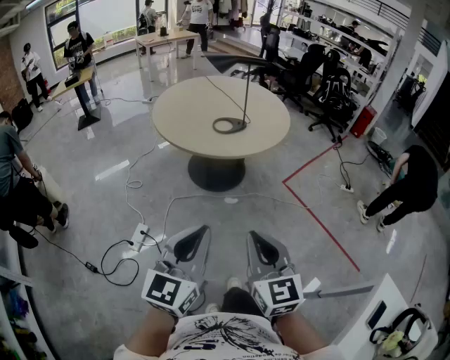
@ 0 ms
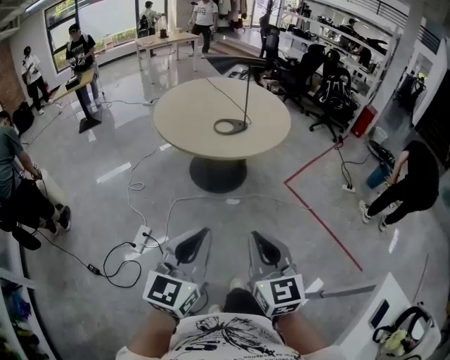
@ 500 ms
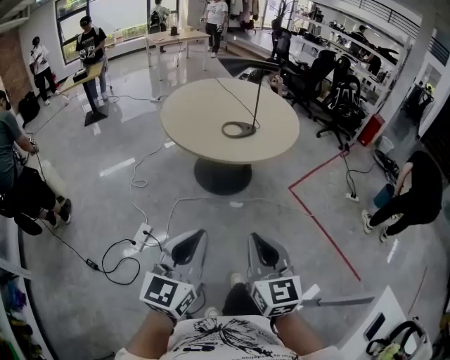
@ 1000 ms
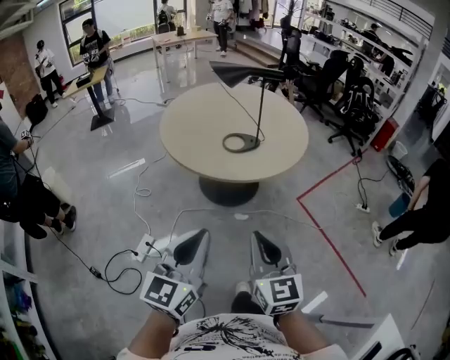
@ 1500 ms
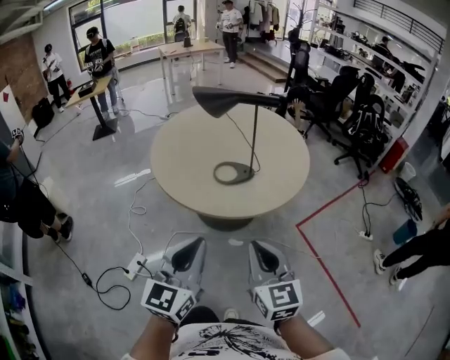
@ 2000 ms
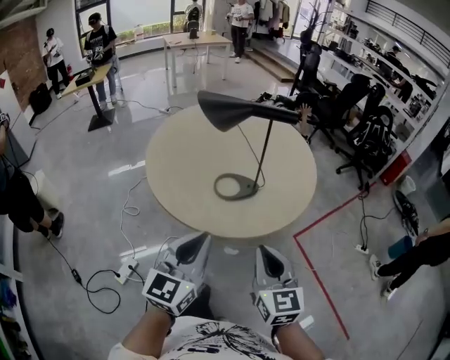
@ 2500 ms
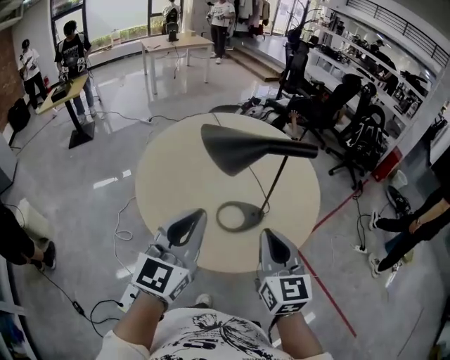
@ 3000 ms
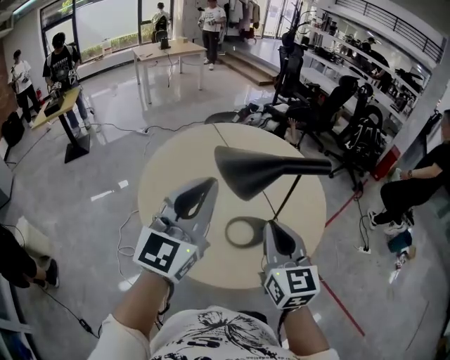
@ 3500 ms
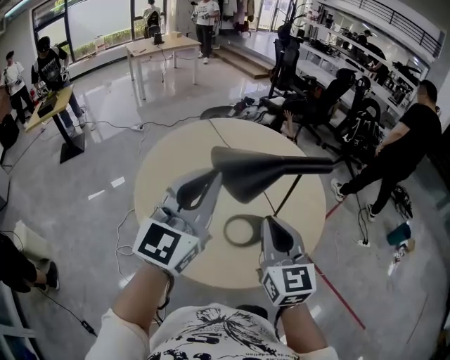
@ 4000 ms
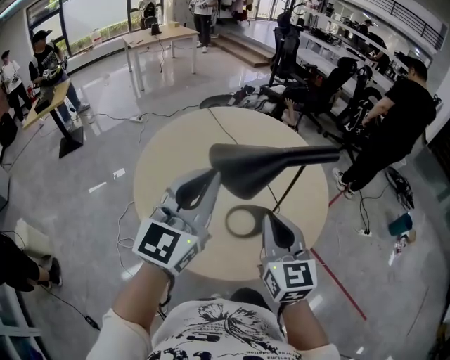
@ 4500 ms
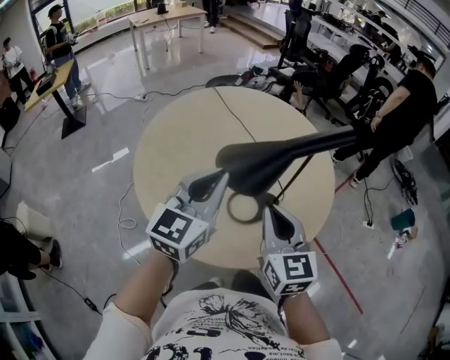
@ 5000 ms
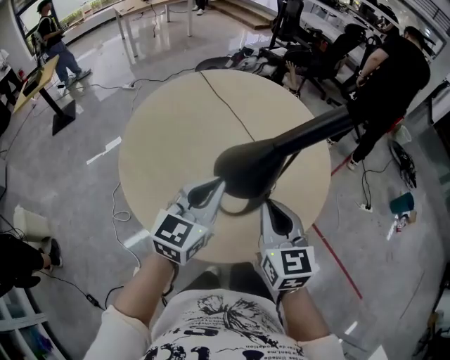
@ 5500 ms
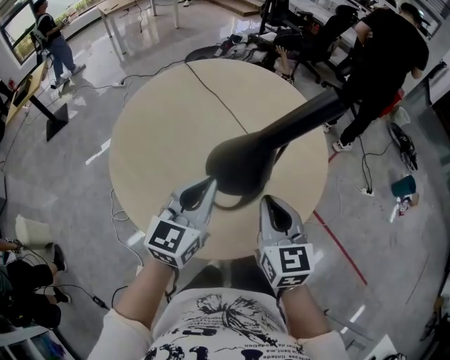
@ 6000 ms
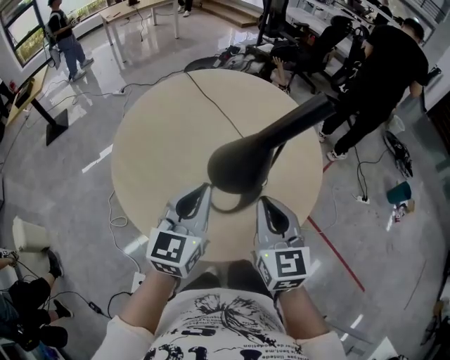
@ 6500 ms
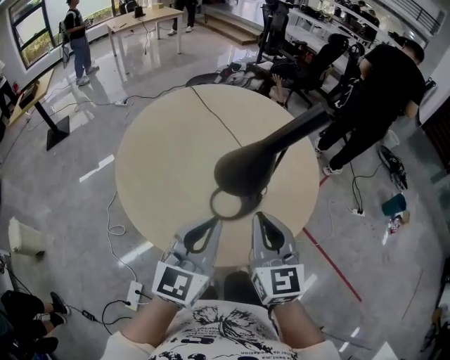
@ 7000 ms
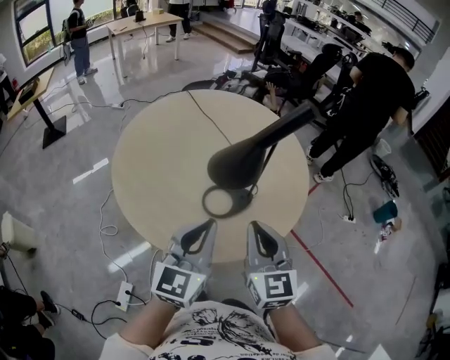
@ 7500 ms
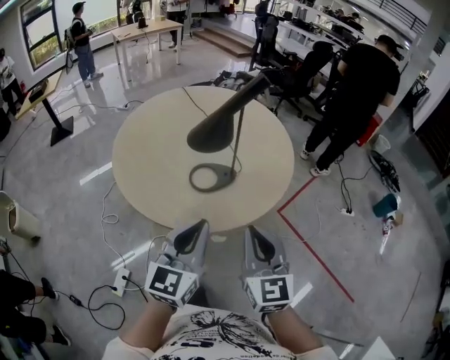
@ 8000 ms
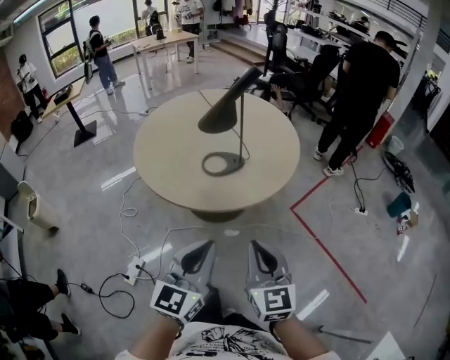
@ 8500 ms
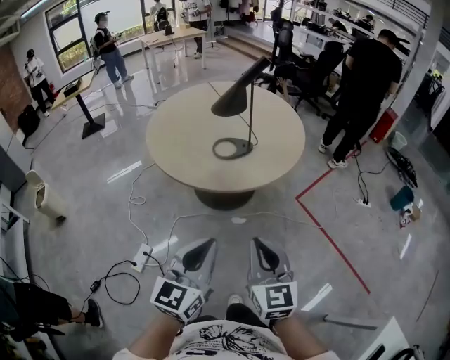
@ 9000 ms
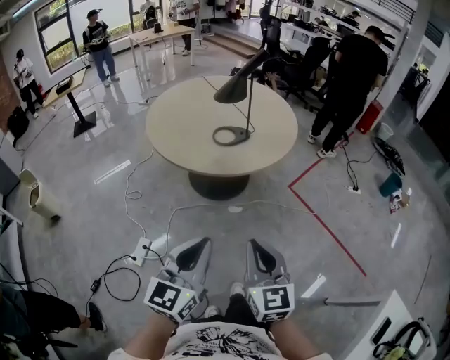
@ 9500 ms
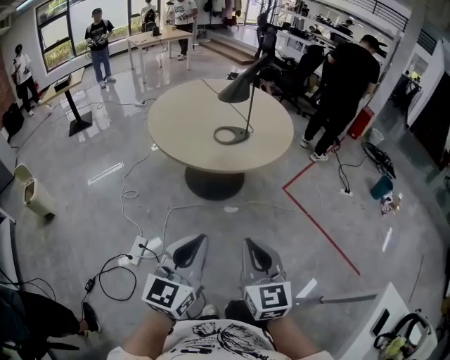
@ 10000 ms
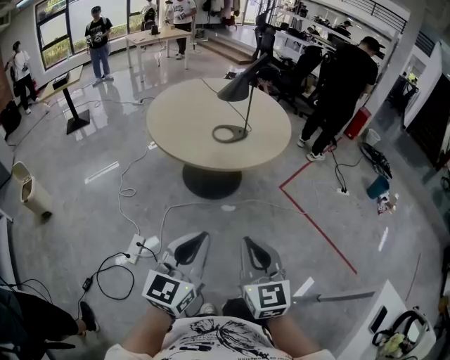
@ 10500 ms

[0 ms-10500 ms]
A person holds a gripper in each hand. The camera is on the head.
0 ms to 2000 ms: Both grippers move forward, roughly 25 cm.
2000 ms to 4000 ms: Both grippers travel together forward, some 35 cm. The left gripper changes its angle by some 20 degrees.
4000 ms to 6500 ms: The left gripper moves downward, some 15 cm, and changes its angle by approximately 20 degrees. Meanwhile the right gripper travels downward by roughly 5 cm.
6500 ms to 8500 ms: Both grippers travel together backward, approximately 30 cm.
8500 ms to 10500 ms: The grippers both shift backward and to the left by about 20 cm.

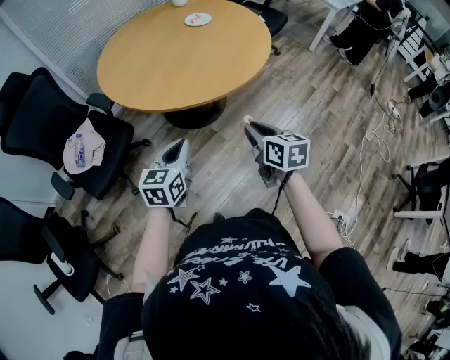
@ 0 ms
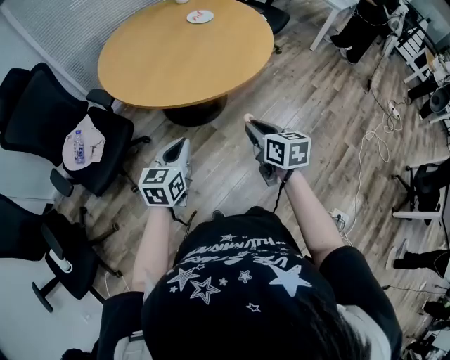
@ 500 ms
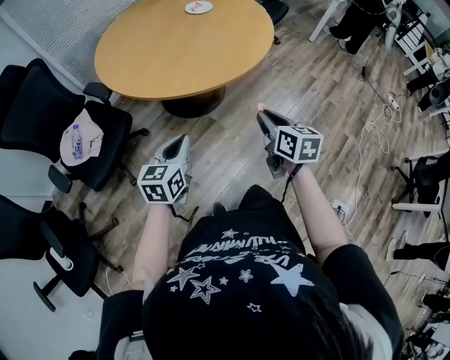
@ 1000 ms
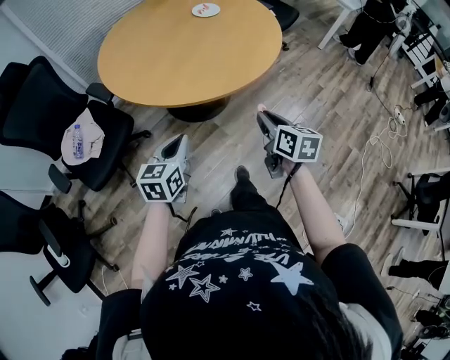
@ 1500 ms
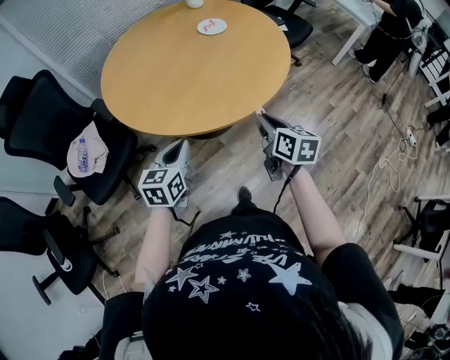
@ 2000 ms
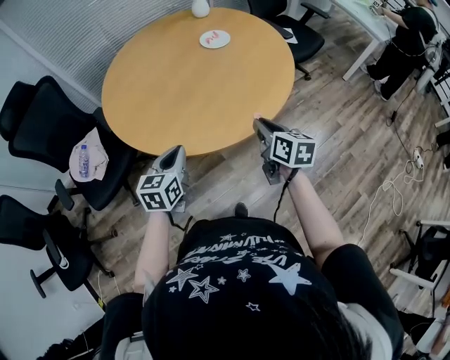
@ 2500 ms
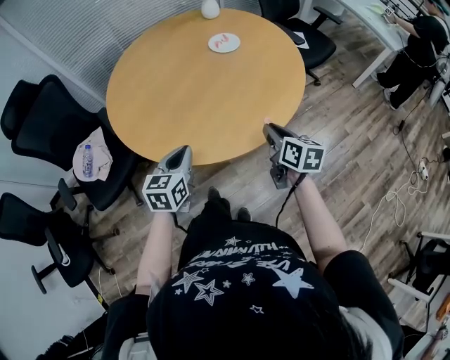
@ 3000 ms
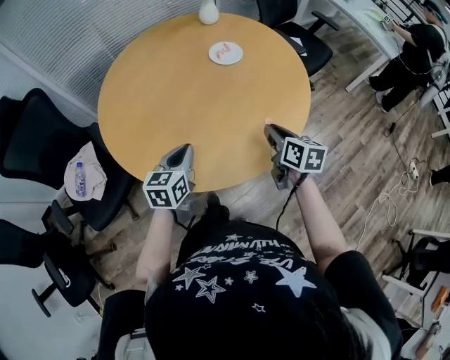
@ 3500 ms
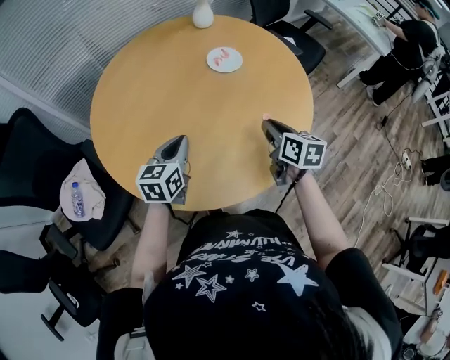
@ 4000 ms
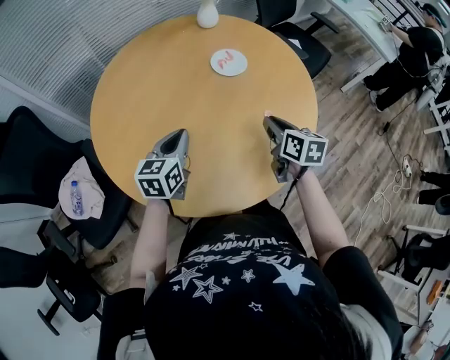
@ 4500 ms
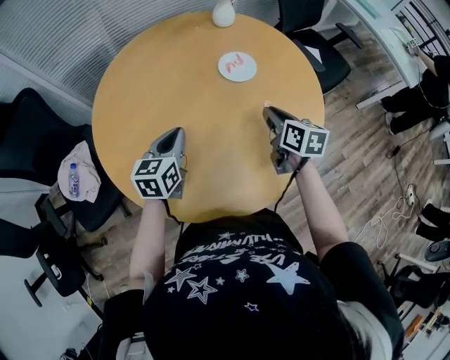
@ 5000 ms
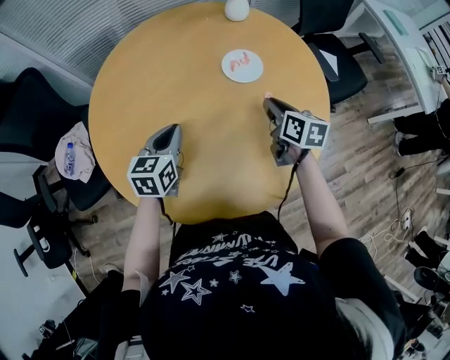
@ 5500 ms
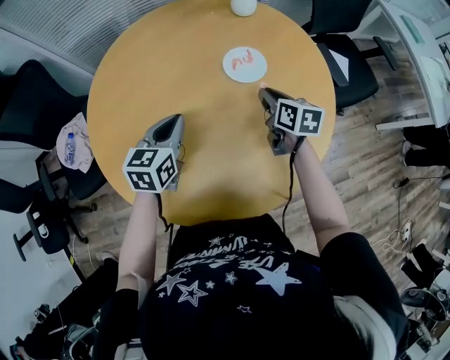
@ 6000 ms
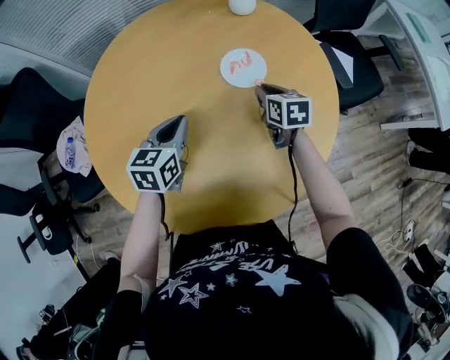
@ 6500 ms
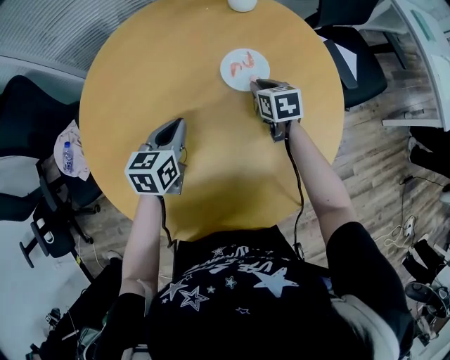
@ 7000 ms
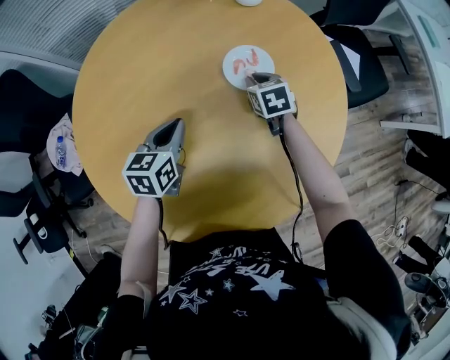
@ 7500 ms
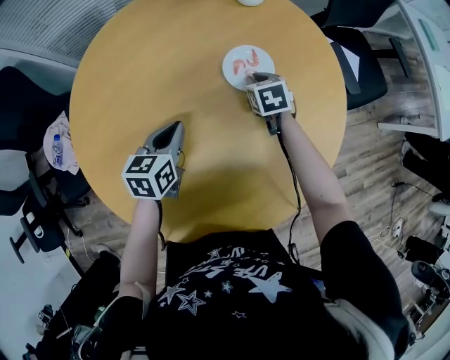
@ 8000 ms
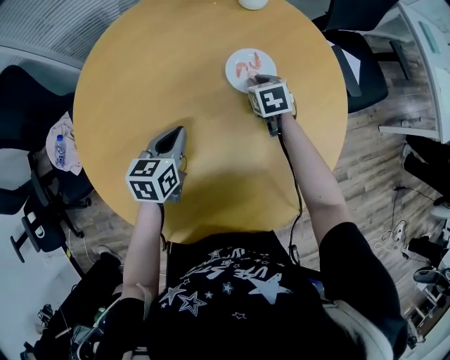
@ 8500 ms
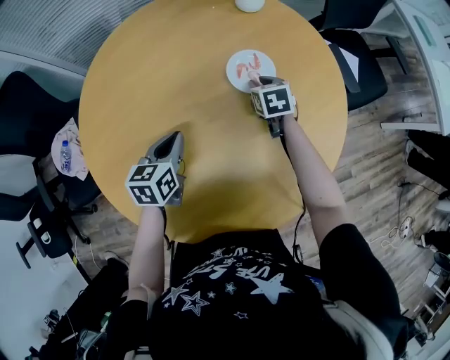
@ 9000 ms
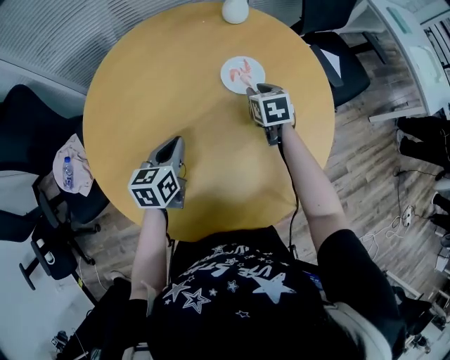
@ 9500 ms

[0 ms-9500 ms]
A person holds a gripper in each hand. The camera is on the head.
0 ms to 2000 ms: Both grippers travel together forward, some 15 cm.
2000 ms to 4000 ms: The grippers both shift forward by roughly 30 cm.
4000 ms to 5500 ms: The right gripper heads forward, covering about 20 cm. The left gripper heads forward, covering some 10 cm.
5500 ms to 7500 ms: The right gripper shifts roughly 20 cm forward and downward, and rotates about 40 degrees. Meanwhile the left gripper goes approximately 10 cm forward and downward.
7500 ms to 9500 ms: The left gripper shifts by roughly 5 cm. Meanwhile the right gripper shifts about 5 cm upward.

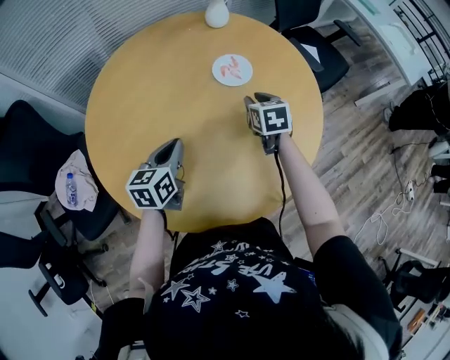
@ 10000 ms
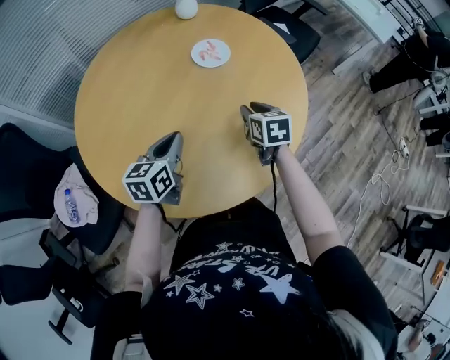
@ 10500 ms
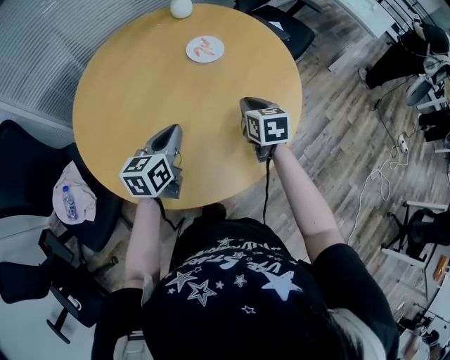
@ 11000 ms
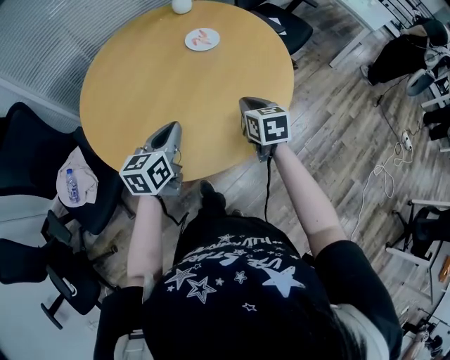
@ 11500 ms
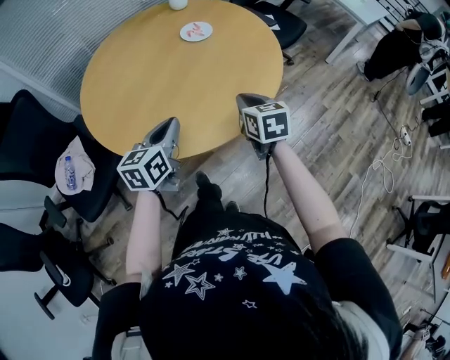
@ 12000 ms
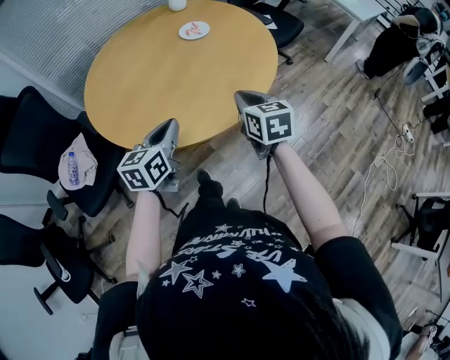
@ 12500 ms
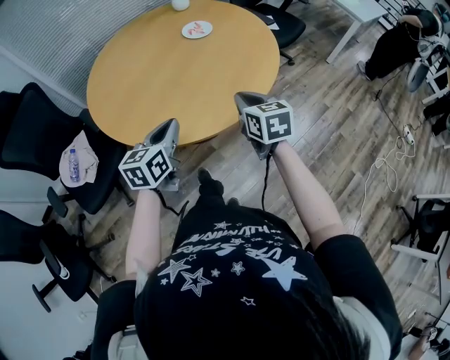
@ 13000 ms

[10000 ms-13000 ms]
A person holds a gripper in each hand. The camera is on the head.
10000 ms to 11500 ms: The right gripper heads backward, covering some 25 cm, and closes its fingers. Meanwhile the left gripper shifts about 15 cm backward and to the right.
11500 ms to 13000 ms: Both grippers travel together backward, some 15 cm.

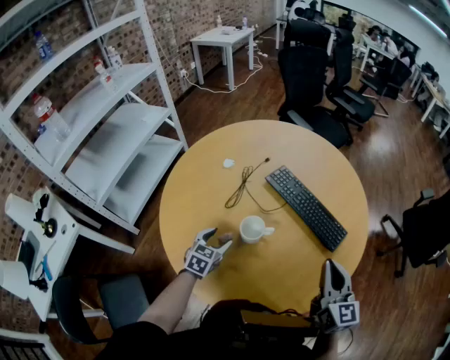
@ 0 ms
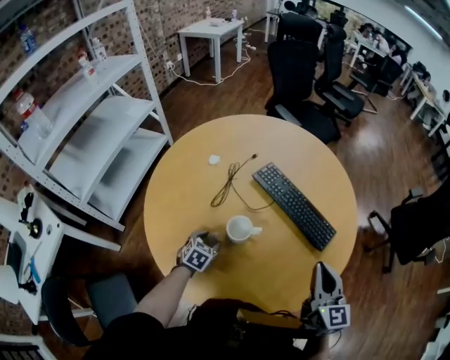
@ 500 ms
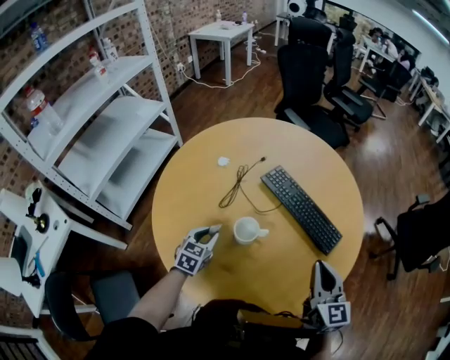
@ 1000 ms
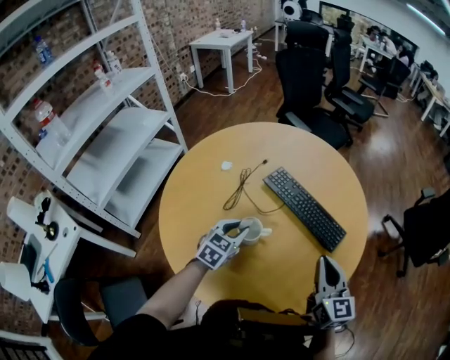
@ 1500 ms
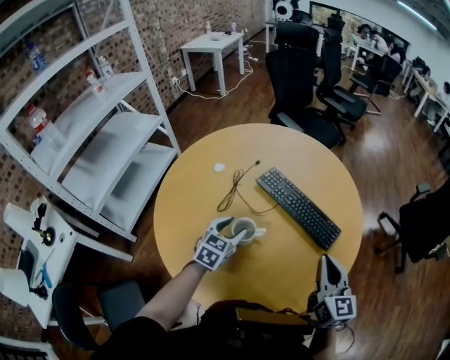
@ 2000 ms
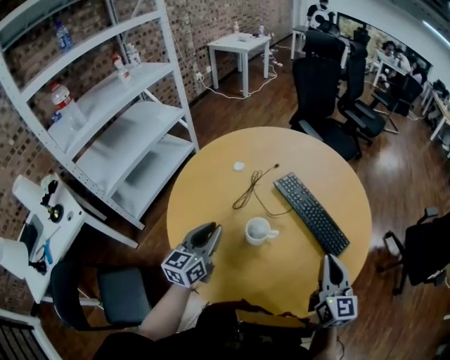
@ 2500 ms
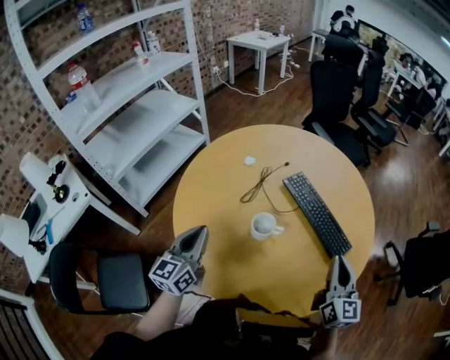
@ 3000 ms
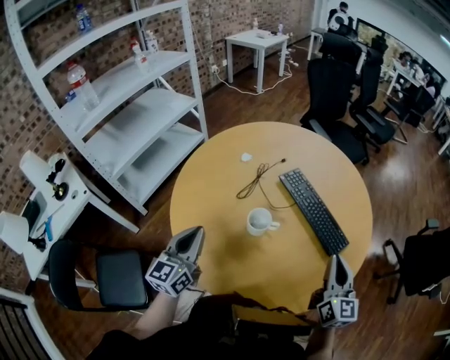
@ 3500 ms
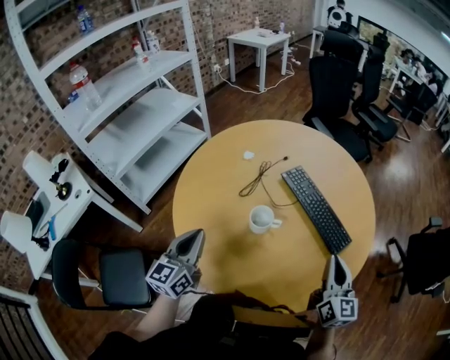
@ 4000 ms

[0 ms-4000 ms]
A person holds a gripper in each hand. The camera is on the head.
0 ms to 2000 ms: The left gripper goes roughly 10 cm upward, to the right and forward, and closes, then opens again.
2000 ms to 4000 ms: The left gripper is displaced backward, to the left and upward by some 25 cm, rotates approximately 40 degrees, and closes its fingers.
